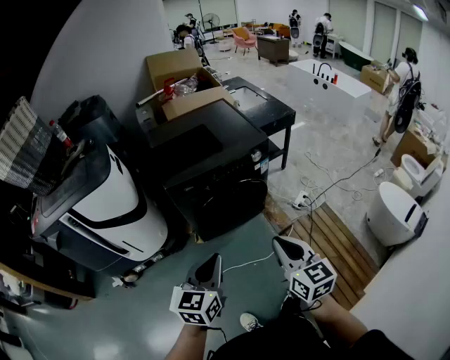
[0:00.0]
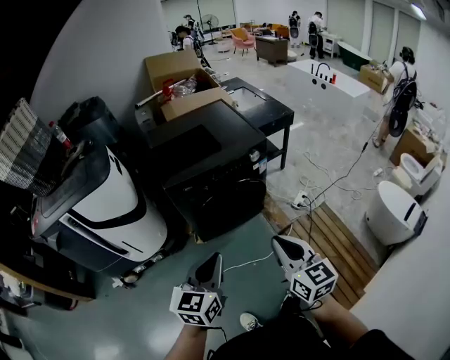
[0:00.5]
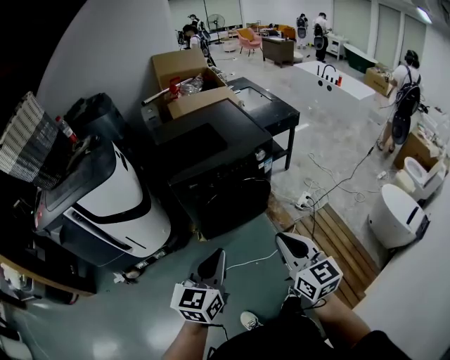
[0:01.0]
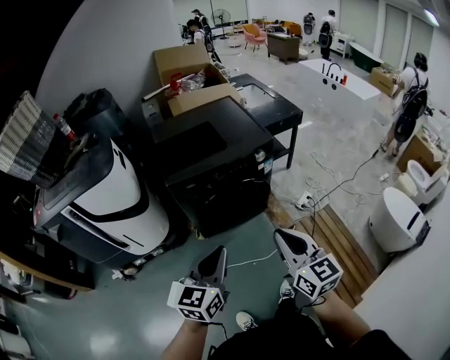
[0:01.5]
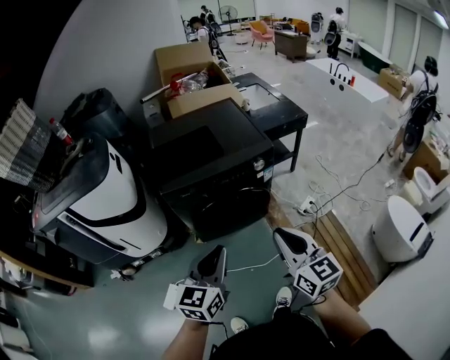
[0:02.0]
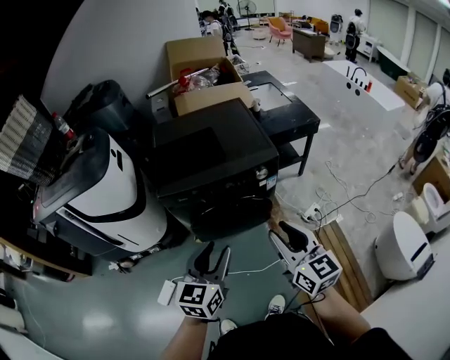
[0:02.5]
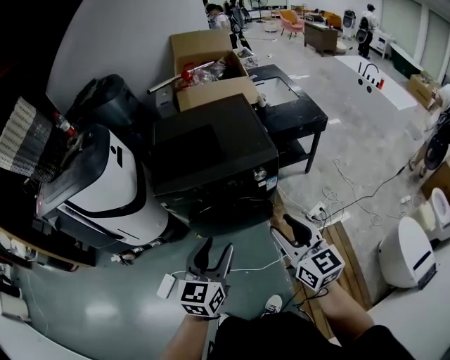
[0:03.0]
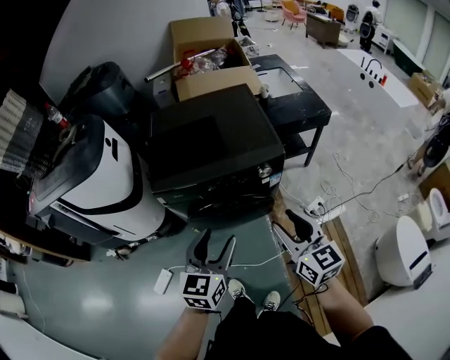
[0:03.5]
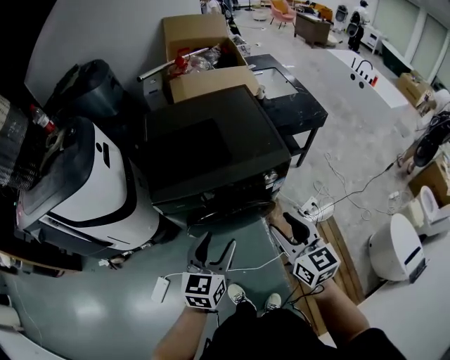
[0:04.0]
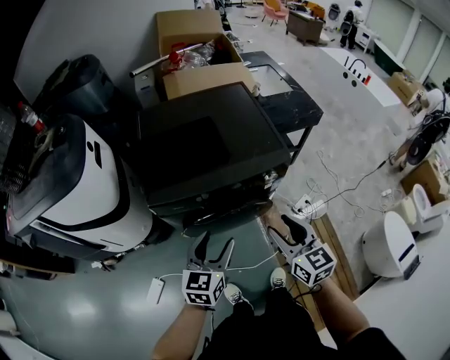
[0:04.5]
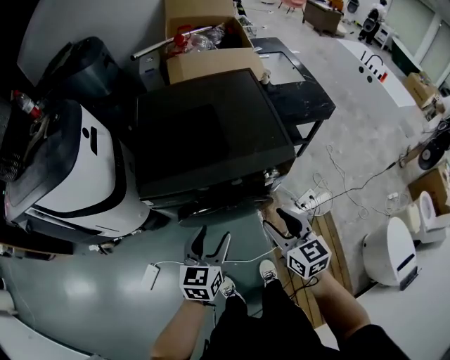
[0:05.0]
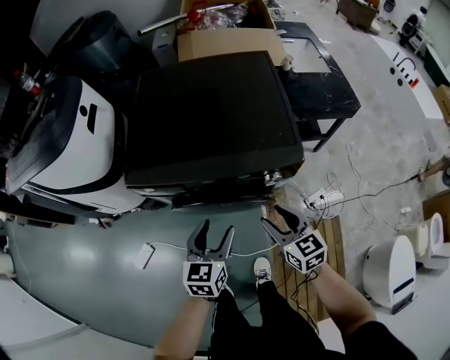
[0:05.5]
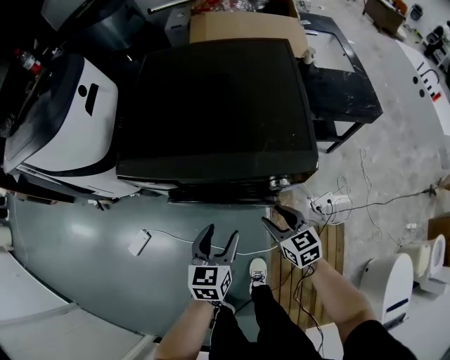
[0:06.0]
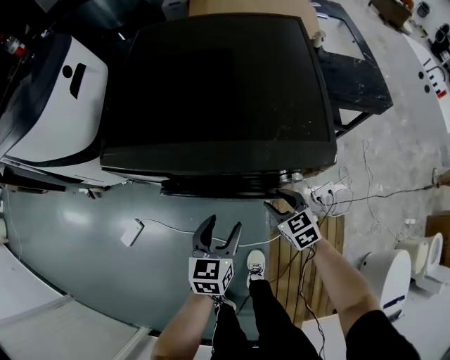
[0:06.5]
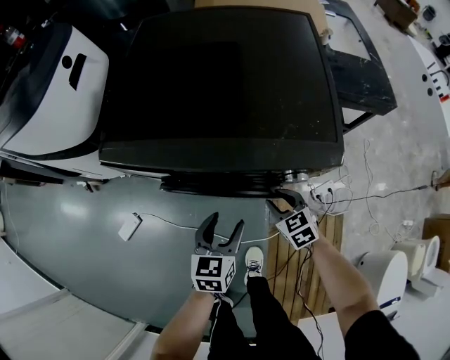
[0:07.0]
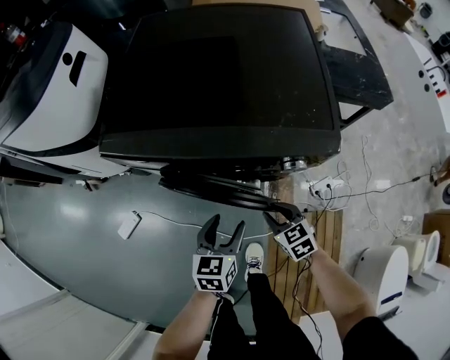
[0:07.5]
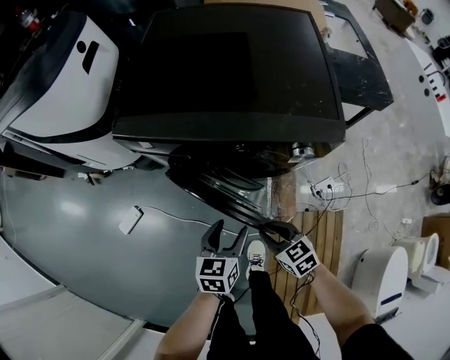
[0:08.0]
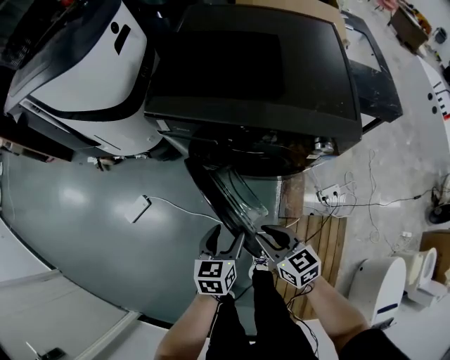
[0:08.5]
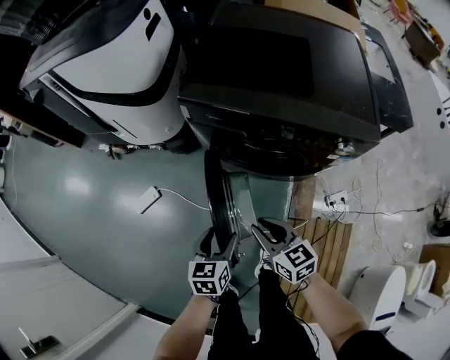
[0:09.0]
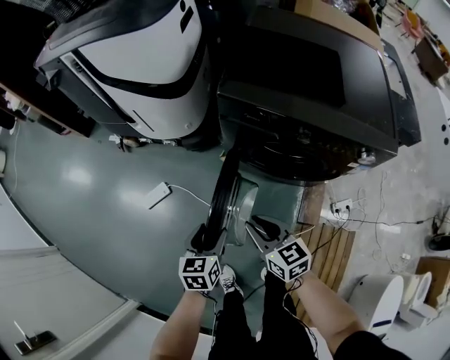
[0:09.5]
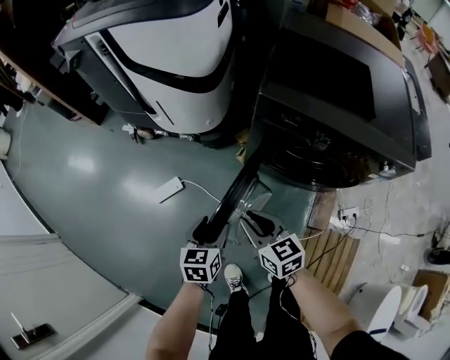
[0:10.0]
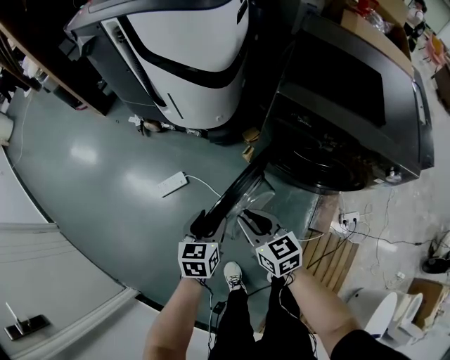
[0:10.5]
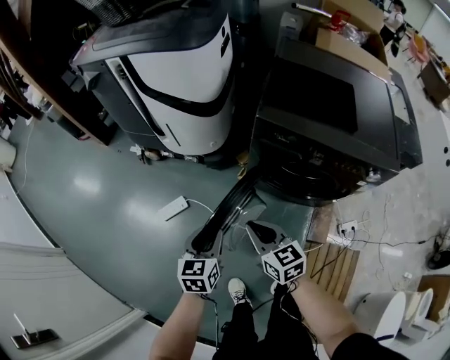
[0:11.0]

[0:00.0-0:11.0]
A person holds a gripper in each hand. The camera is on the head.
0:00.0 to 0:02.0: The two grippers go some 10 cm forward and to the right.
0:02.0 to 0:03.5: The grippers both shift forward and to the right by approximately 15 cm. The left gripper opens up. The right gripper opens up.
0:03.5 to 0:05.5: The two grippers go some 25 cm downward and forward. The right gripper swivels approximately 20 degrees.
0:05.5 to 0:07.5: Both grippers move downward, about 20 cm. The right gripper turns by approximately 20 degrees.
0:07.5 to 0:09.0: The left gripper shifts roughly 25 cm to the left and backward, while the right gripper is displaced to the left and upward by about 25 cm, and turns by about 20 degrees.
0:09.0 to 0:11.0: The left gripper goes about 25 cm to the left and upward, and closes up. Meanwhile the right gripper is displaced to the left by approximately 20 cm.

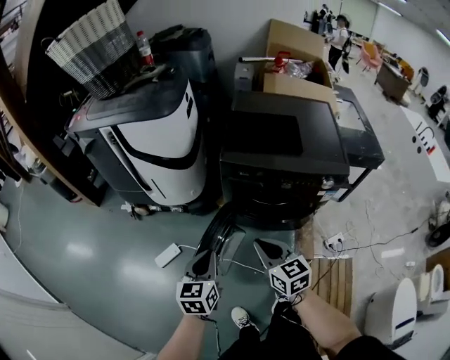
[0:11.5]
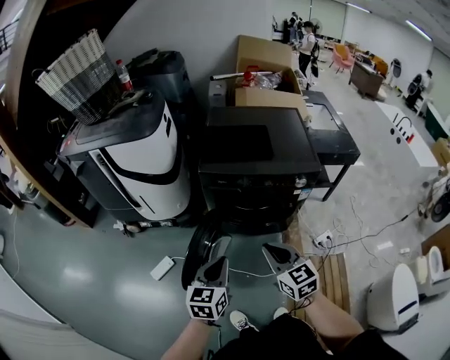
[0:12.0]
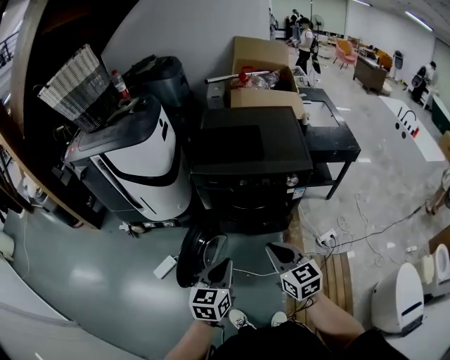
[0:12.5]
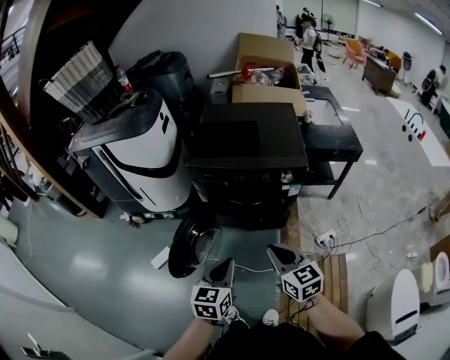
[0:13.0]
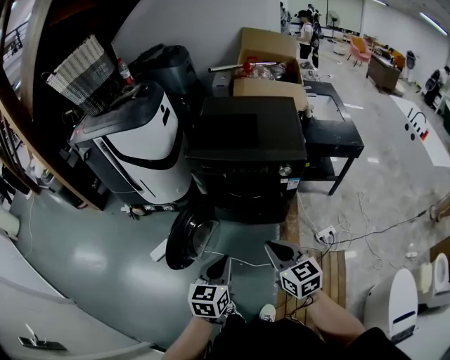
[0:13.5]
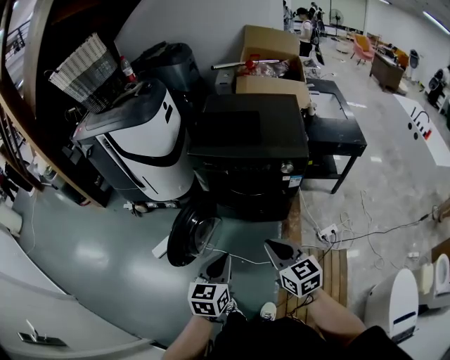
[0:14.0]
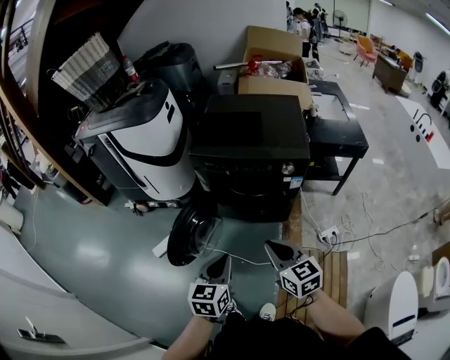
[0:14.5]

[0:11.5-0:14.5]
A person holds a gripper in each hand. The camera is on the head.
0:11.5 to 0:13.0: Both grippers move to the right and backward, some 25 cm.
0:13.0 to 0:14.5: The grippers move only a little.

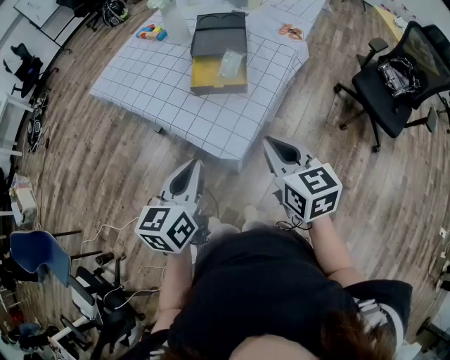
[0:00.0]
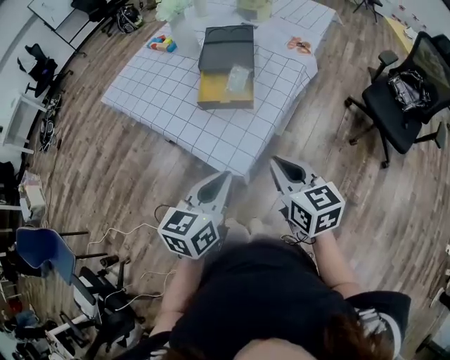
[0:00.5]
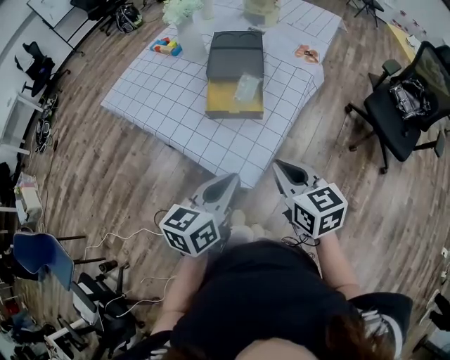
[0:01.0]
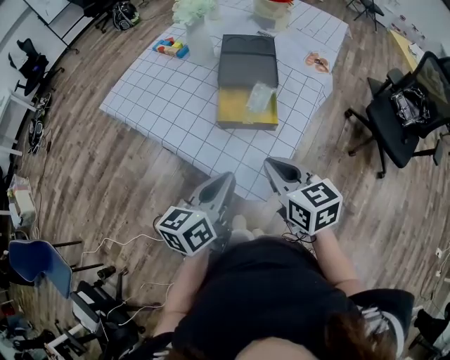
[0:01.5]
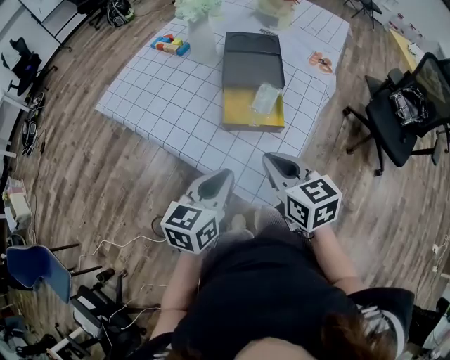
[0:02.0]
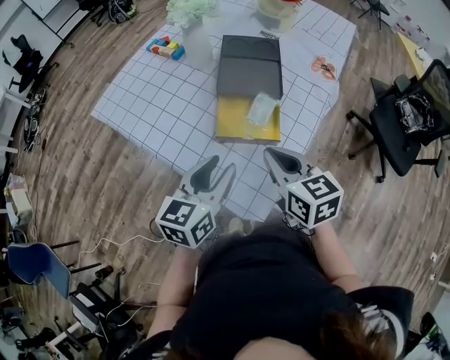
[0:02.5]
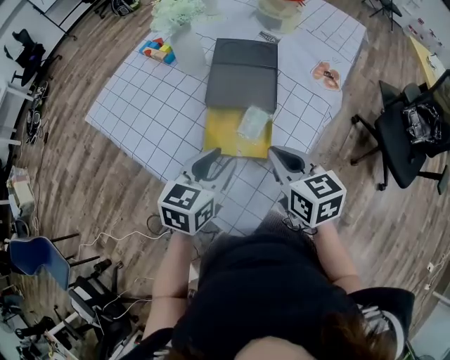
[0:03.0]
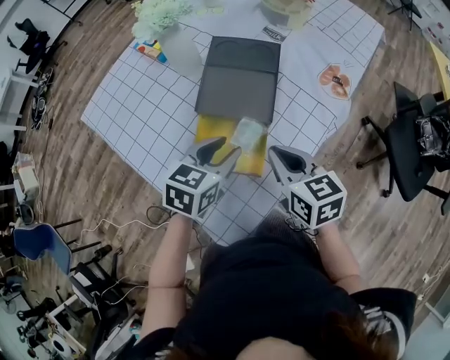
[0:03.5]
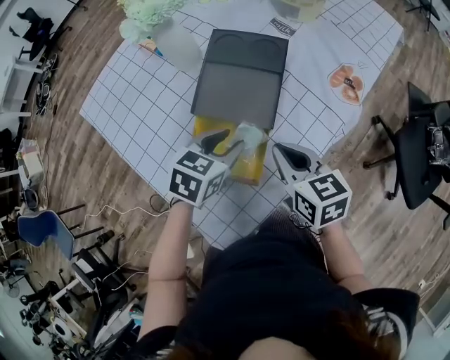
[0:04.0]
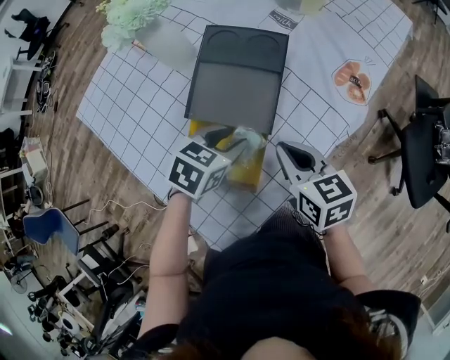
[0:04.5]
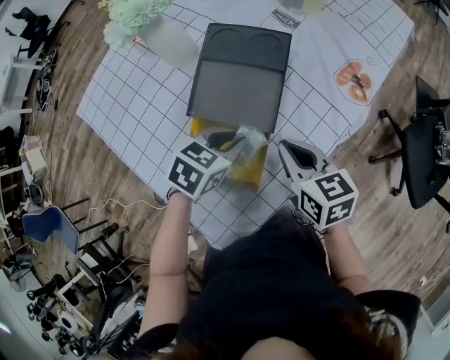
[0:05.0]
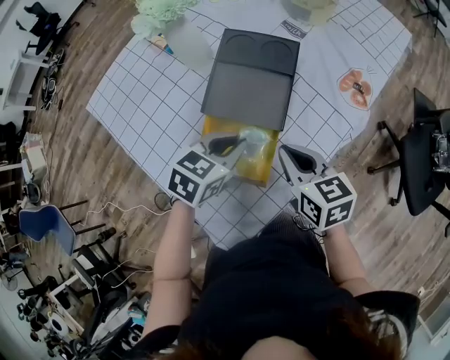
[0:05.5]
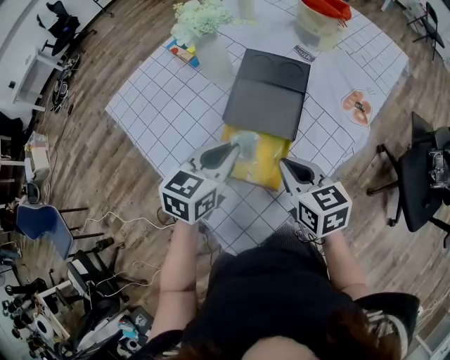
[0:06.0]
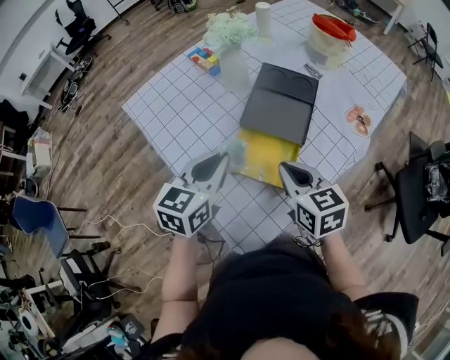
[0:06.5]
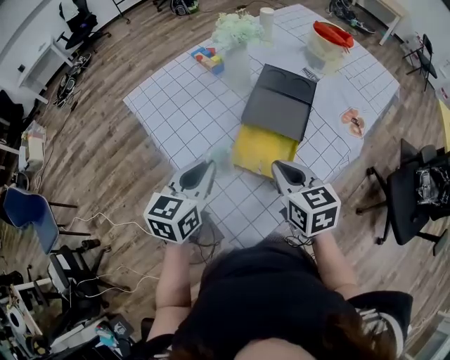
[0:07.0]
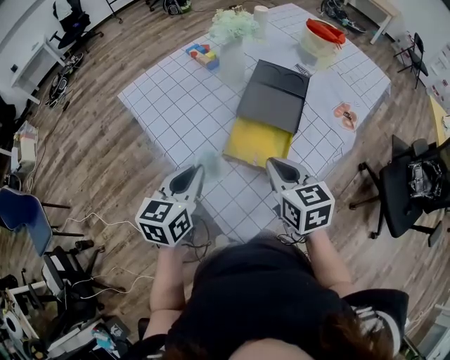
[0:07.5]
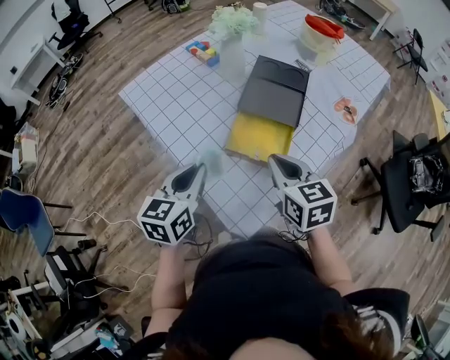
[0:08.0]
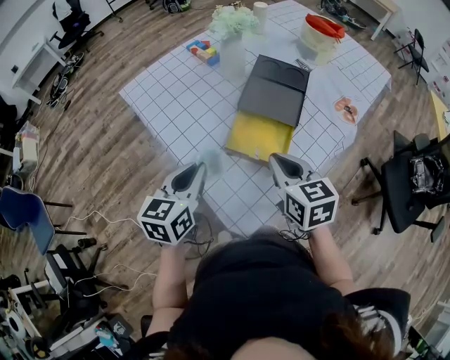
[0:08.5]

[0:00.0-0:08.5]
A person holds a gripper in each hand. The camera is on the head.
0:00.0 to 0:02.0: The right gripper goes roughly 15 cm forward and to the left. The left gripper shifts some 10 cm forward.
0:02.0 to 0:04.0: Both grippers travel together forward and to the right, about 25 cm. The left gripper changes its angle by about 30 degrees, and opens.
0:04.0 to 0:06.5: The left gripper moves upward, to the left and backward, roughly 20 cm, changes its angle by approximately 30 degrees, and closes; the right gripper moves to the left, upward and backward, some 10 cm.
0:06.5 to 0:08.5: The right gripper shifts about 5 cm backward, while the left gripper goes roughly 10 cm backward and to the left.

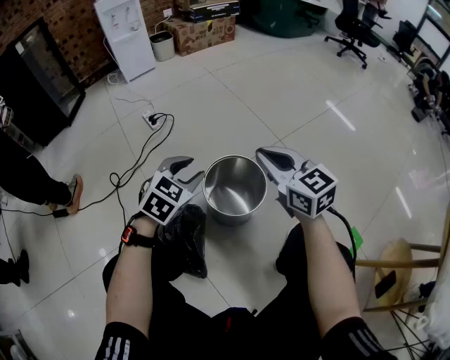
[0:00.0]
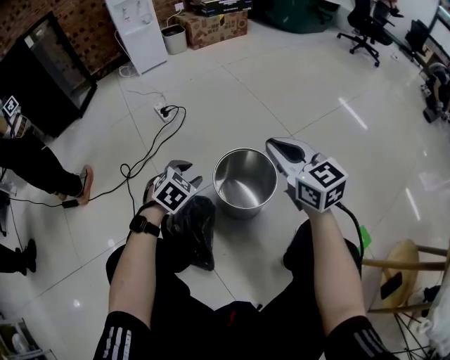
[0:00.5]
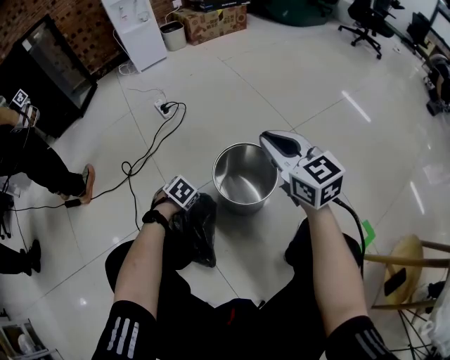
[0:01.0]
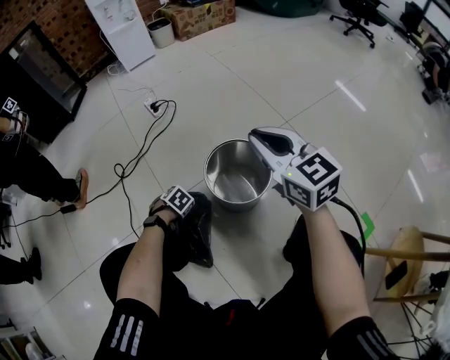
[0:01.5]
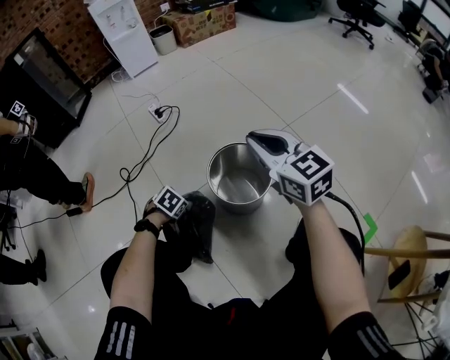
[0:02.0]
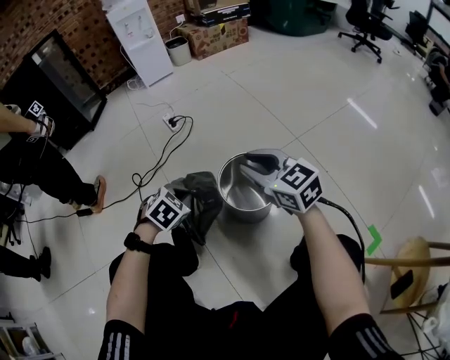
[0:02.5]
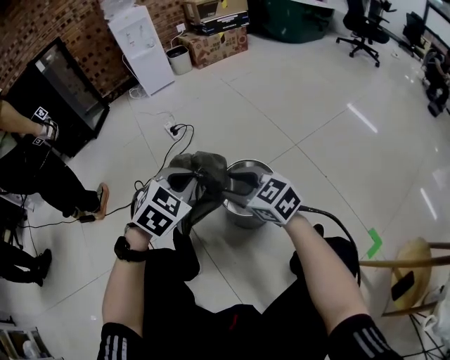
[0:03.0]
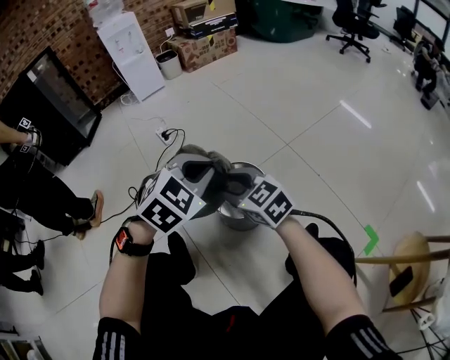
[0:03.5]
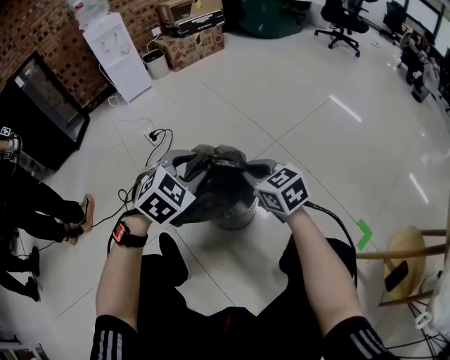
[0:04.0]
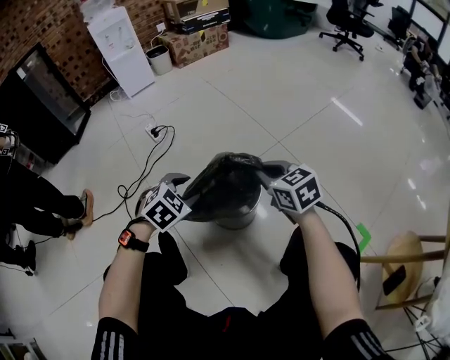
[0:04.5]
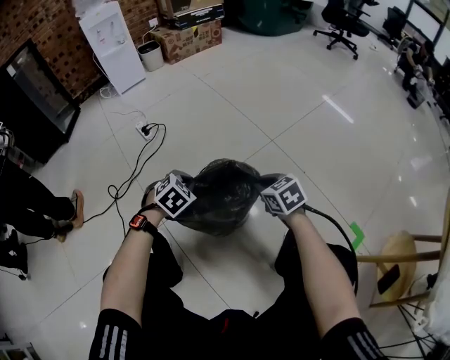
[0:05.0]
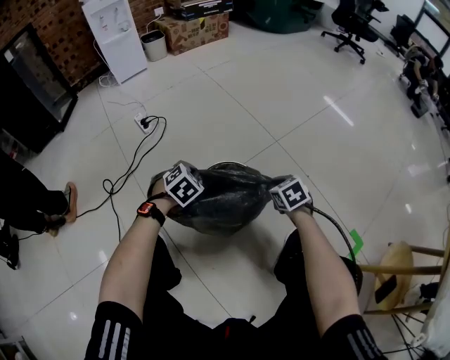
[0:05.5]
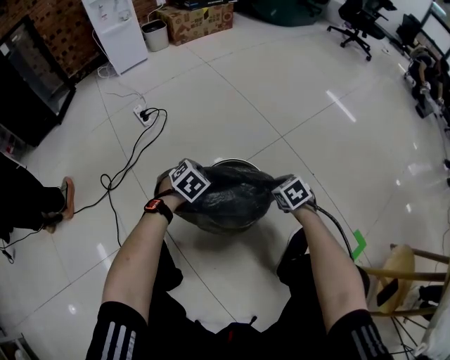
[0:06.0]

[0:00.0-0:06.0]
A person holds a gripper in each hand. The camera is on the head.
0:00.0 to 0:02.0: The left gripper is displaced downward by roughly 25 cm, tilts its fingers roughly 40 degrees downward, and closes.
0:02.0 to 0:04.0: The right gripper goes roughly 5 cm downward, and opens and closes again. Meanwhile the left gripper moves upward, approximately 30 cm, tilts its fingers some 30 degrees upward, and opens its fingers.
0:04.0 to 0:06.0: The right gripper shifts some 25 cm downward, and tilts its fingers some 30 degrees downward, while the left gripper goes approximately 30 cm downward and forward, changes its angle by some 20 degrees, and closes.
